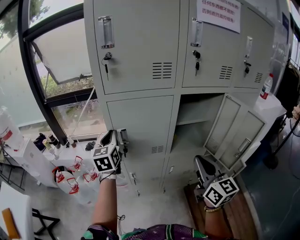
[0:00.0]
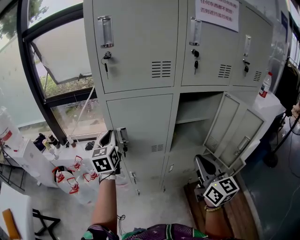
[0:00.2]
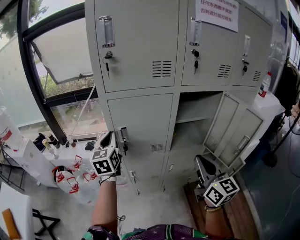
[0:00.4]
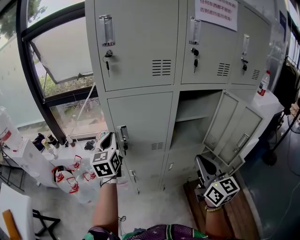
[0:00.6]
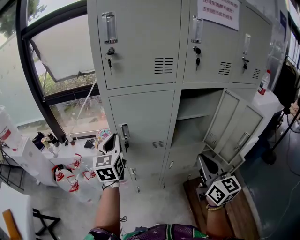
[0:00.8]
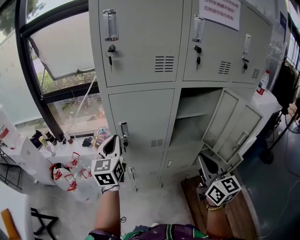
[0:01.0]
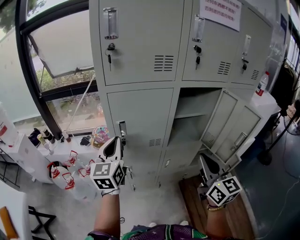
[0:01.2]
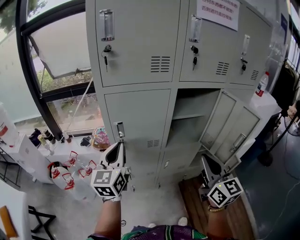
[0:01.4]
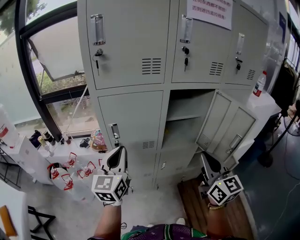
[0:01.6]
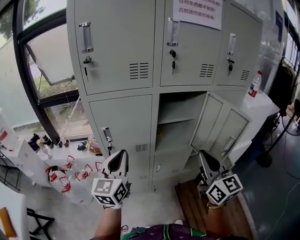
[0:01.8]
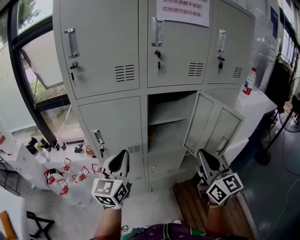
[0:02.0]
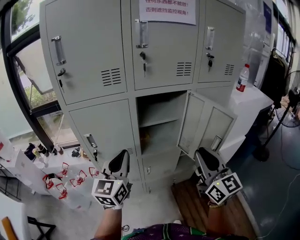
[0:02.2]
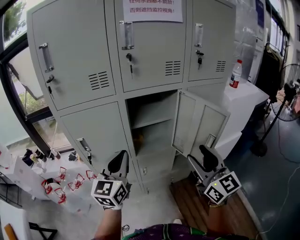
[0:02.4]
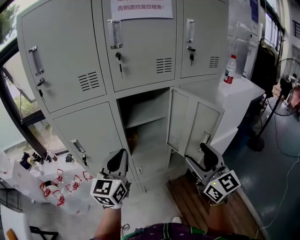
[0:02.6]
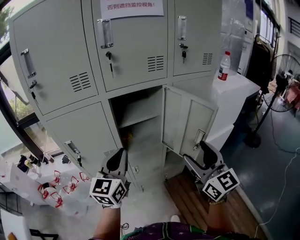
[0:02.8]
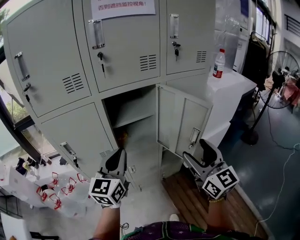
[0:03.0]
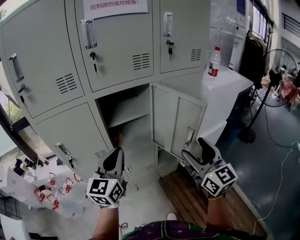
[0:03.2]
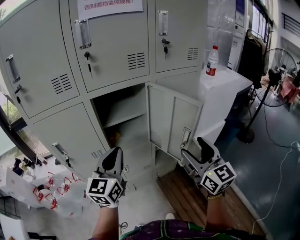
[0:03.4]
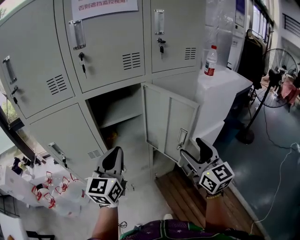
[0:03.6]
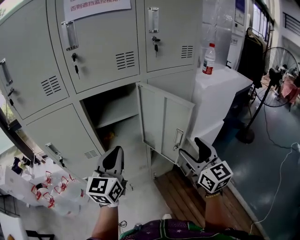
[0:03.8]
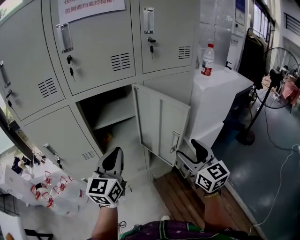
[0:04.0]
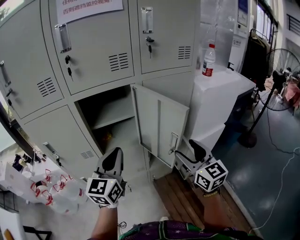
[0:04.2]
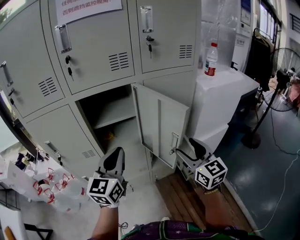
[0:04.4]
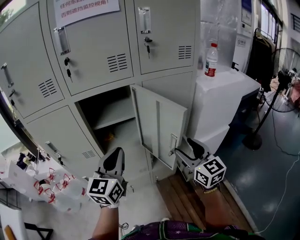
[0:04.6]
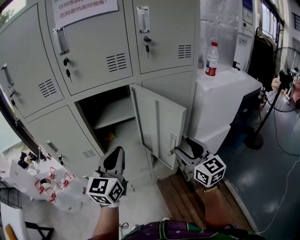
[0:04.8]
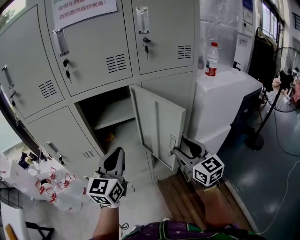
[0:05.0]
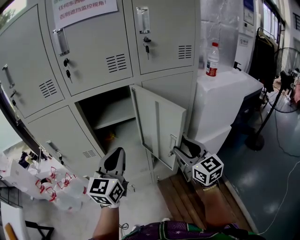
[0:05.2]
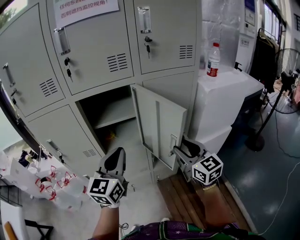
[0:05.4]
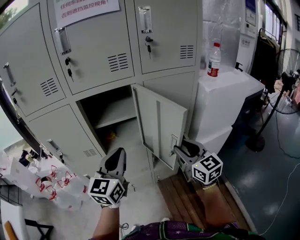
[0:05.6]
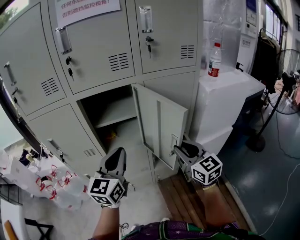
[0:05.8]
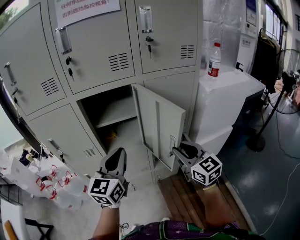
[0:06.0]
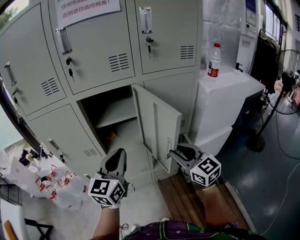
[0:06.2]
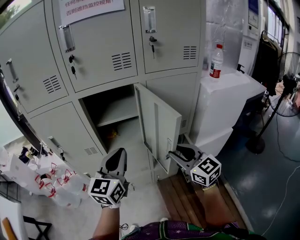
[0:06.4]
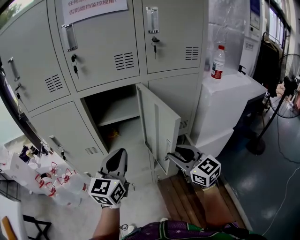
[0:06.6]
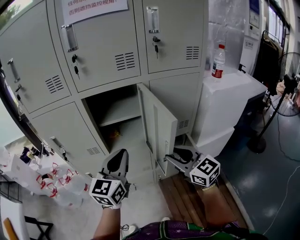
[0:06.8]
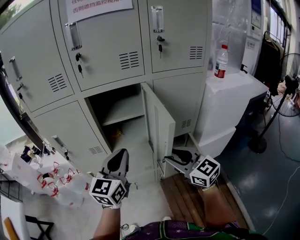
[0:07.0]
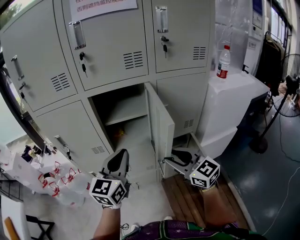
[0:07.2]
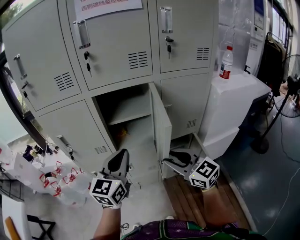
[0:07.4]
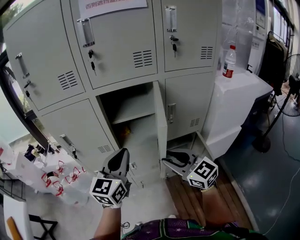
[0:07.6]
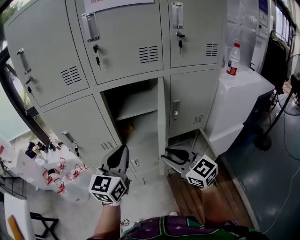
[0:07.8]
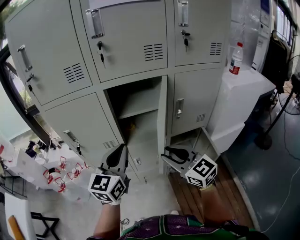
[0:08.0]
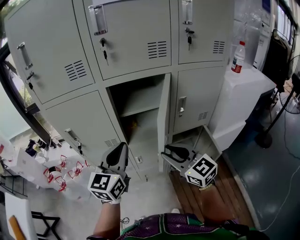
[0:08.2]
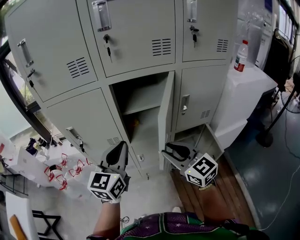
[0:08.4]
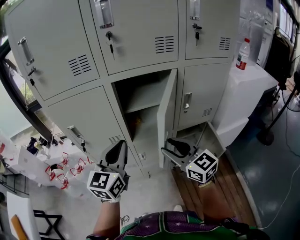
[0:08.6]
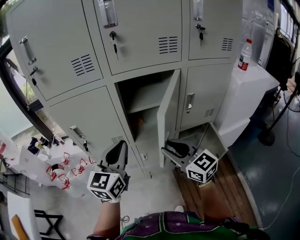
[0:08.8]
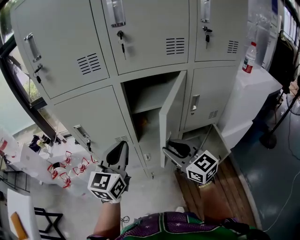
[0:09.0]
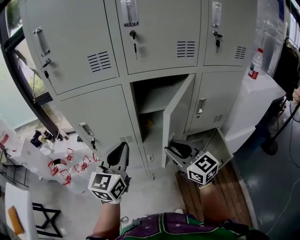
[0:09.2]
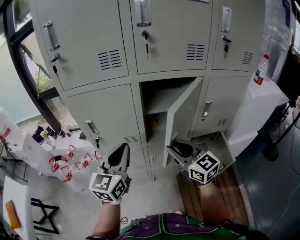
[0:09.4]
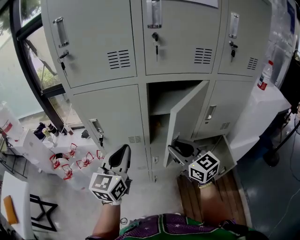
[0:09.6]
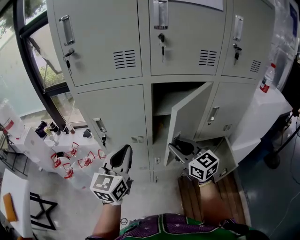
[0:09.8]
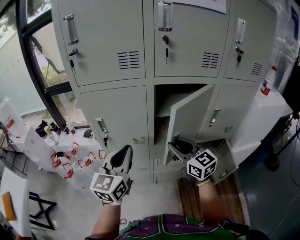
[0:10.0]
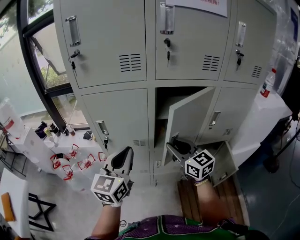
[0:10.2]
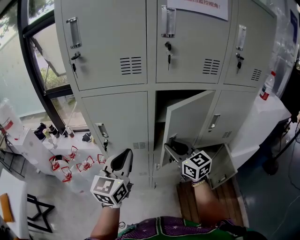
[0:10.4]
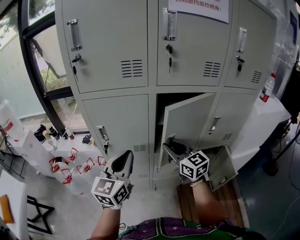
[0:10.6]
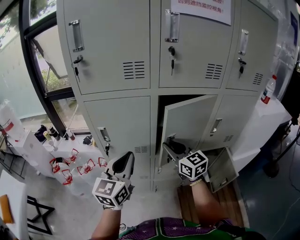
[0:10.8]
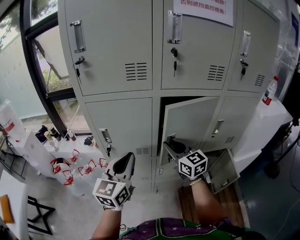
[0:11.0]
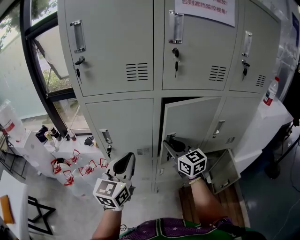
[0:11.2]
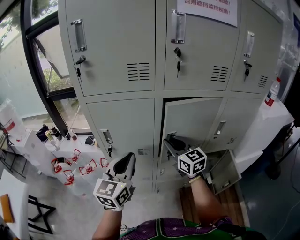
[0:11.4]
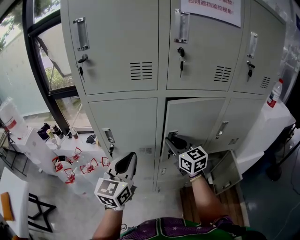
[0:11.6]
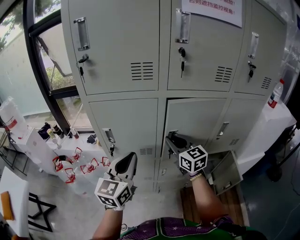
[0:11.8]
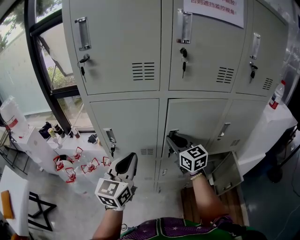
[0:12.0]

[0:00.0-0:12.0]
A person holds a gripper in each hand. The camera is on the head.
0:00.0 to 0:01.6: The left gripper shifts some 15 cm backward and to the right; the right gripper ends up about 5 cm from where it was.
0:01.6 to 0:03.0: Both grippers move to the right, some 20 cm. The right gripper opens up.
0:03.0 to 0:04.4: The right gripper heads to the right, downward and forward, covering some 15 cm. Meanwhile the left gripper heads to the right, covering some 10 cm.
0:04.4 to 0:06.0: The right gripper closes.
0:06.0 to 0:07.6: The left gripper goes some 5 cm to the left. Meanwhile the right gripper shifts roughly 15 cm to the left.
0:07.6 to 0:09.0: The right gripper moves to the left and forward, some 10 cm; the left gripper goes roughly 10 cm to the left.
0:09.0 to 0:10.4: The right gripper goes roughly 10 cm forward and to the left. Meanwhile the left gripper heads to the left, covering some 10 cm.
0:10.4 to 0:12.0: The right gripper shifts some 10 cm forward.

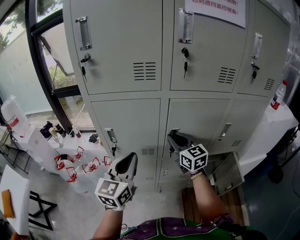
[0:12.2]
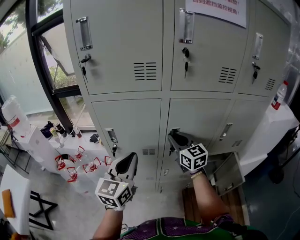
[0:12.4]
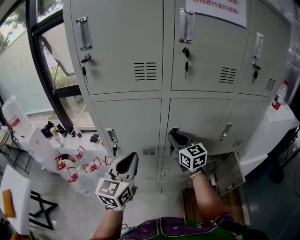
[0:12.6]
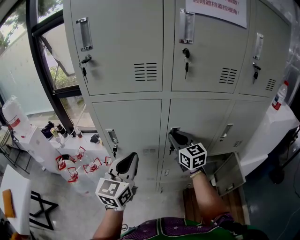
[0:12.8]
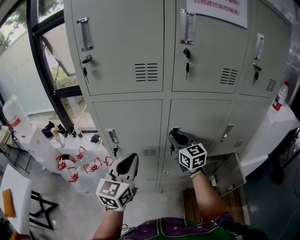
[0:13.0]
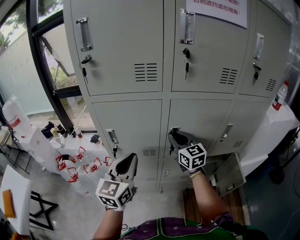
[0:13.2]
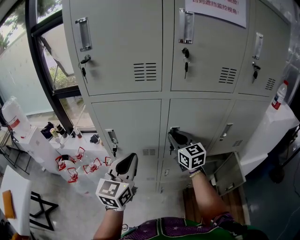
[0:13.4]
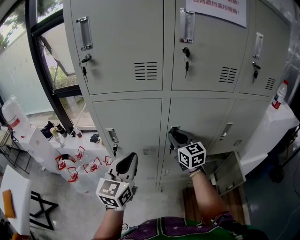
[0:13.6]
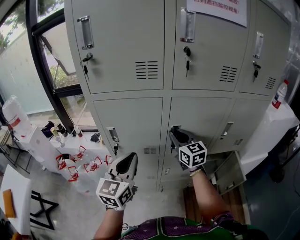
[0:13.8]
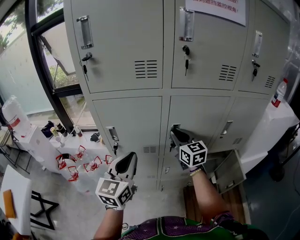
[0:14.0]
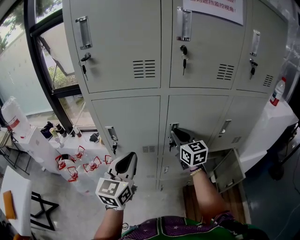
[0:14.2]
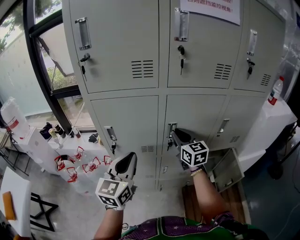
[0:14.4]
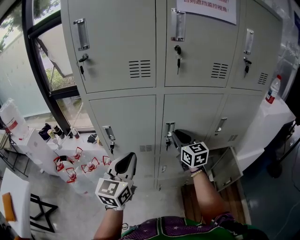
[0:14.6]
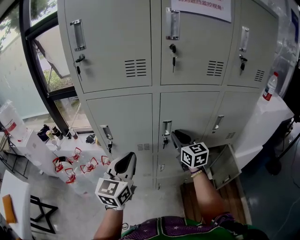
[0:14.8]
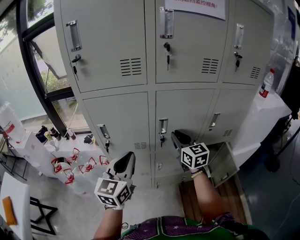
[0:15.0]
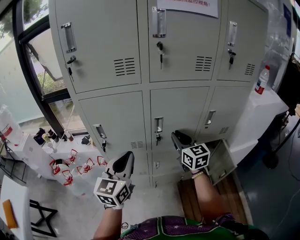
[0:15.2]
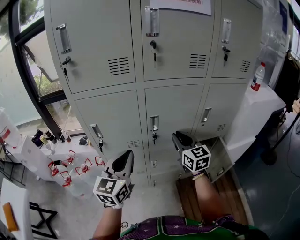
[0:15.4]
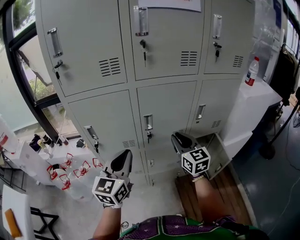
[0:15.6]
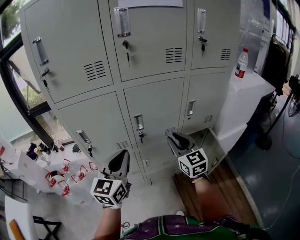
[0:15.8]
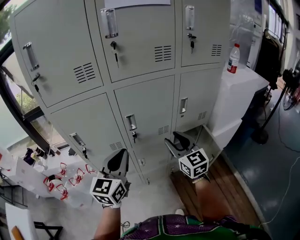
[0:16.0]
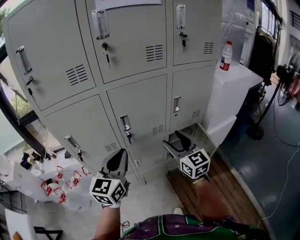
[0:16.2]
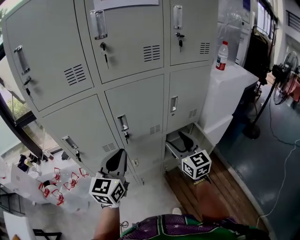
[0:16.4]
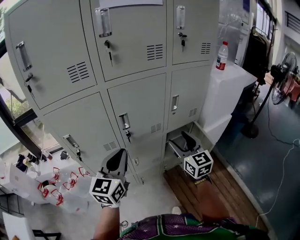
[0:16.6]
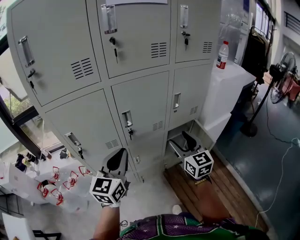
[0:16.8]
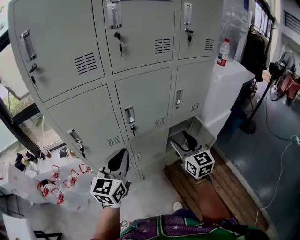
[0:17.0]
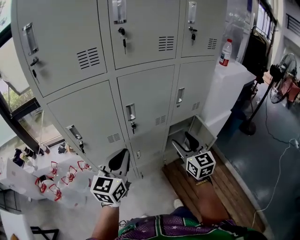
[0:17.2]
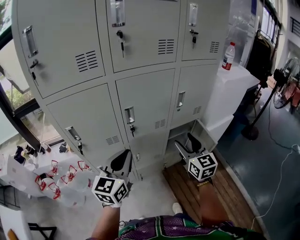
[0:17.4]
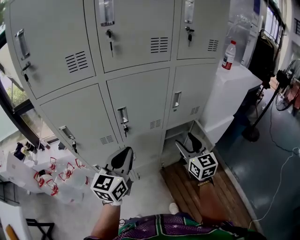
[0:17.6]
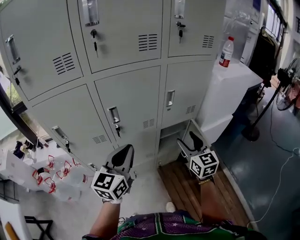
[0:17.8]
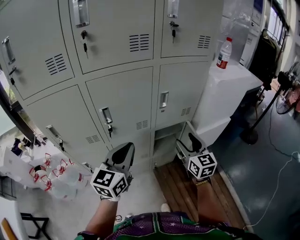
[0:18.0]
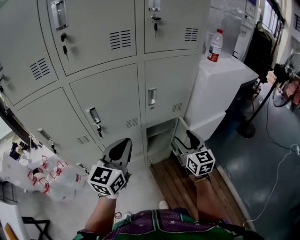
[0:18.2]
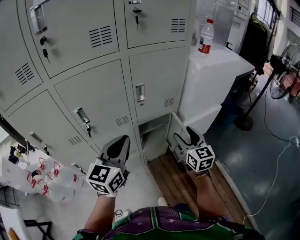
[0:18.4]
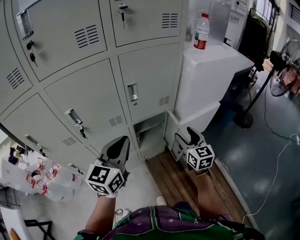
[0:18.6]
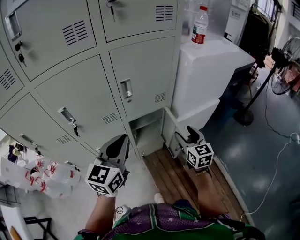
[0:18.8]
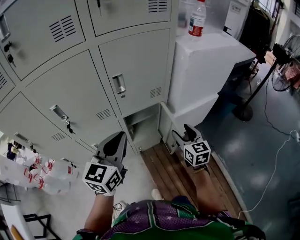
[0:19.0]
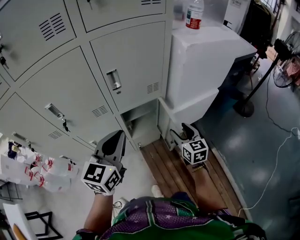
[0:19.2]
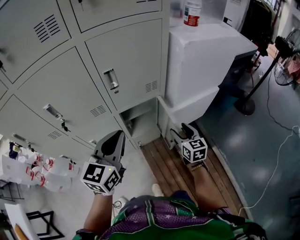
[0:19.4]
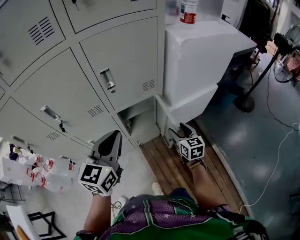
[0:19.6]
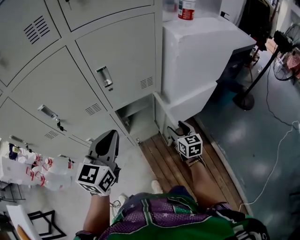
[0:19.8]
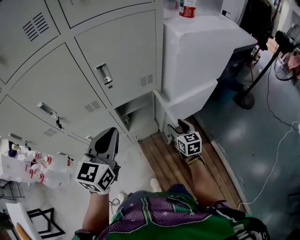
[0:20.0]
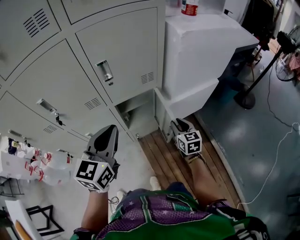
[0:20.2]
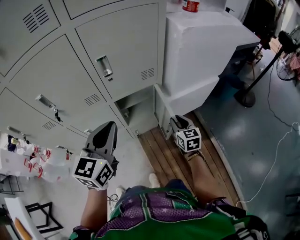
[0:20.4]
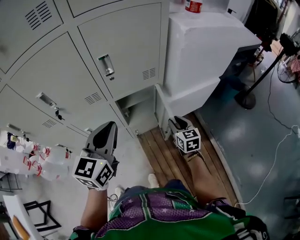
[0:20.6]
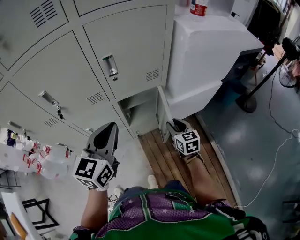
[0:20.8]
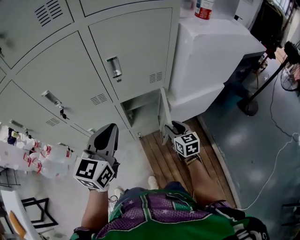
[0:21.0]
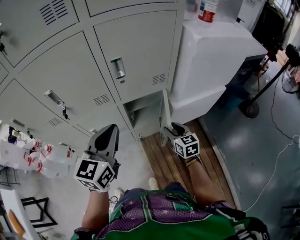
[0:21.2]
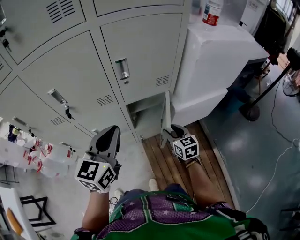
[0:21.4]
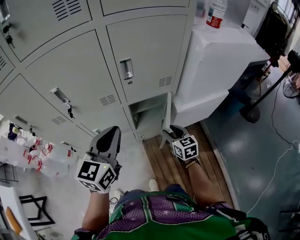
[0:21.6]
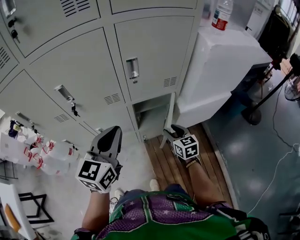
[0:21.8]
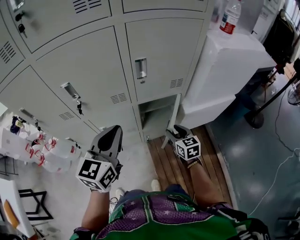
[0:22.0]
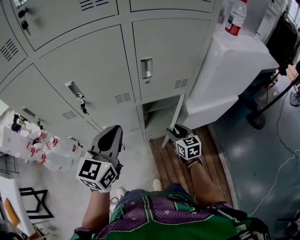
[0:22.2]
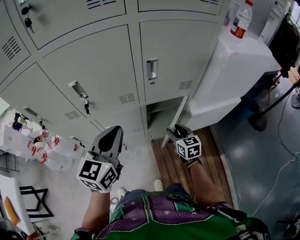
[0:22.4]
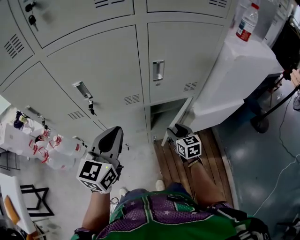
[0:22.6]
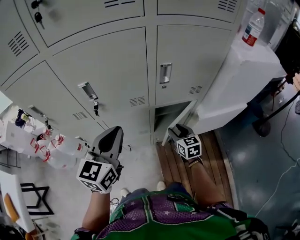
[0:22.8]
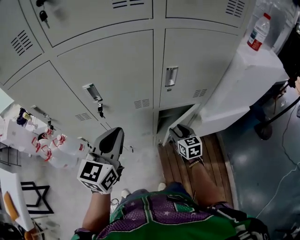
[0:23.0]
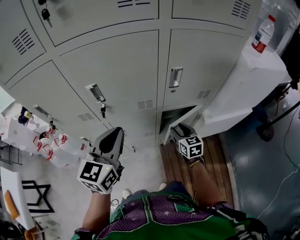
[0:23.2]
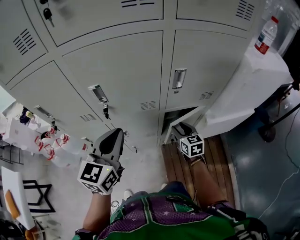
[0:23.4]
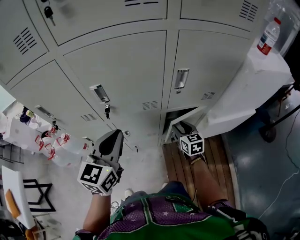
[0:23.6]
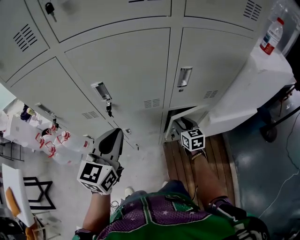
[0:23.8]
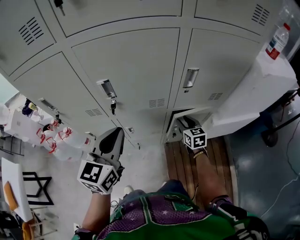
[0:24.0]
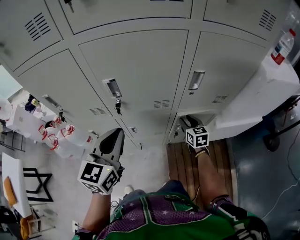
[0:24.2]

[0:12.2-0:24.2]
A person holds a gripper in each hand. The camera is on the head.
0:12.2 to 0:13.8: The grippers make only small movements.
0:13.8 to 0:15.2: The left gripper ends up roughly 5 cm from where it was, while the right gripper travels to the right and backward by approximately 10 cm.
0:15.2 to 0:16.6: The right gripper heads to the right and backward, covering approximately 15 cm, and opens up; the left gripper is displaced to the right by some 10 cm.
0:16.6 to 0:18.2: The two grippers go approximately 15 cm to the right.
0:18.2 to 0:19.8: The left gripper heads to the right and downward, covering some 15 cm; the right gripper travels downward and to the right by approximately 25 cm.
0:19.8 to 0:21.2: The right gripper goes about 5 cm to the left.
0:21.2 to 0:22.6: The two grippers go about 10 cm to the left.
0:22.6 to 0:24.2: The left gripper goes about 10 cm to the left. Meanwhile the right gripper travels forward and to the left by roughly 10 cm.
